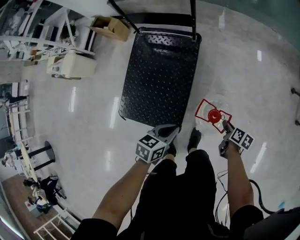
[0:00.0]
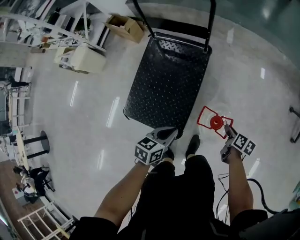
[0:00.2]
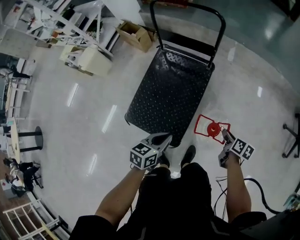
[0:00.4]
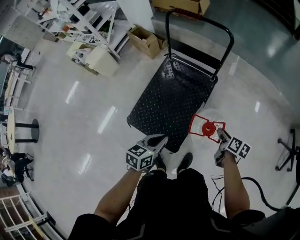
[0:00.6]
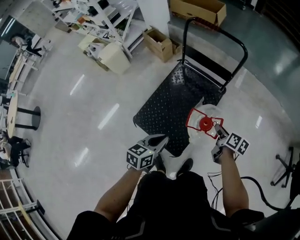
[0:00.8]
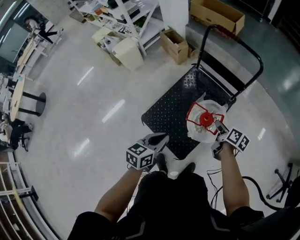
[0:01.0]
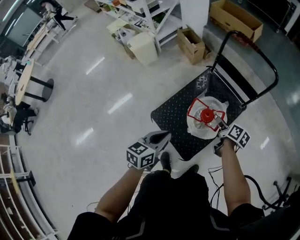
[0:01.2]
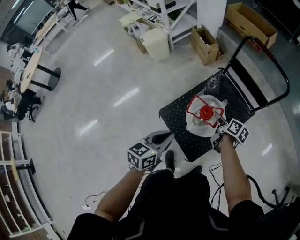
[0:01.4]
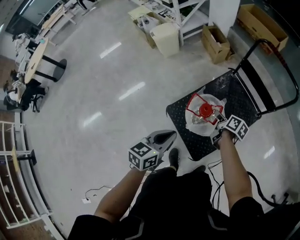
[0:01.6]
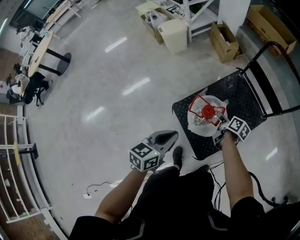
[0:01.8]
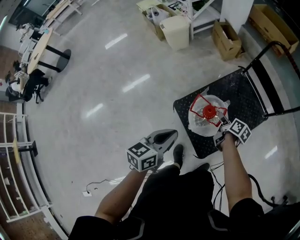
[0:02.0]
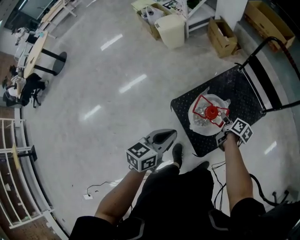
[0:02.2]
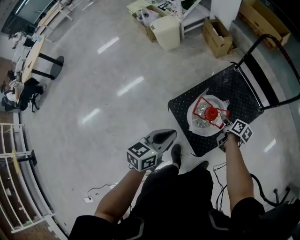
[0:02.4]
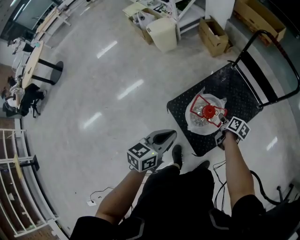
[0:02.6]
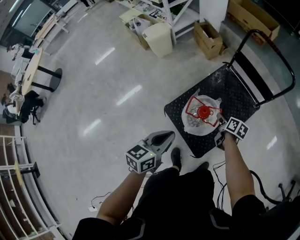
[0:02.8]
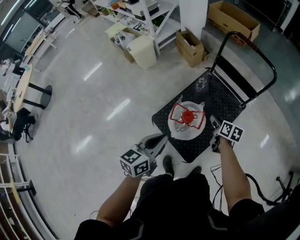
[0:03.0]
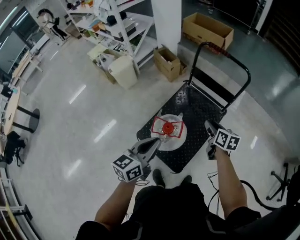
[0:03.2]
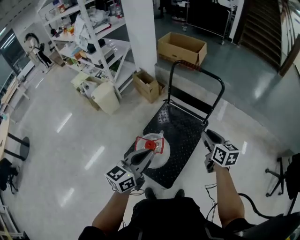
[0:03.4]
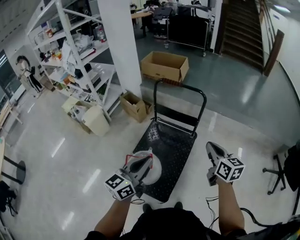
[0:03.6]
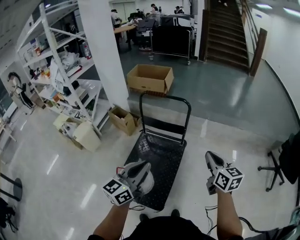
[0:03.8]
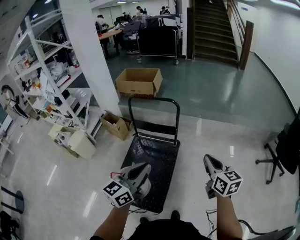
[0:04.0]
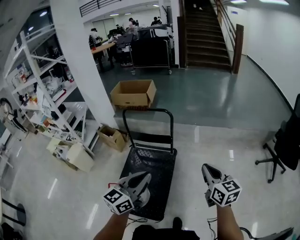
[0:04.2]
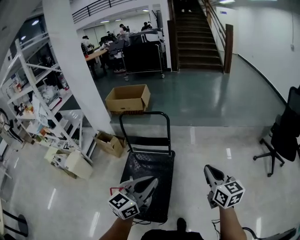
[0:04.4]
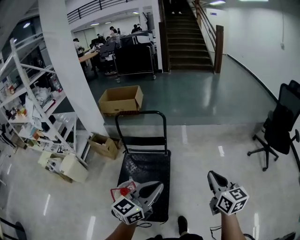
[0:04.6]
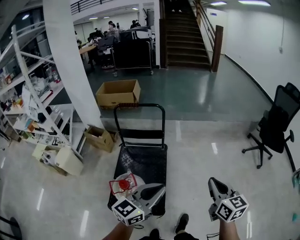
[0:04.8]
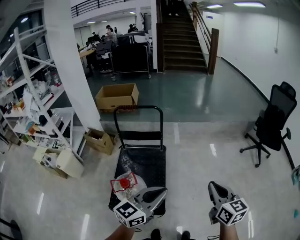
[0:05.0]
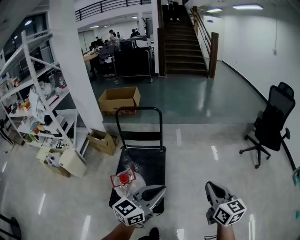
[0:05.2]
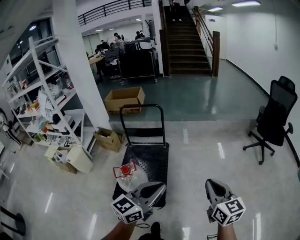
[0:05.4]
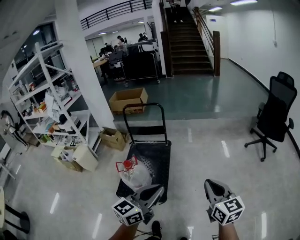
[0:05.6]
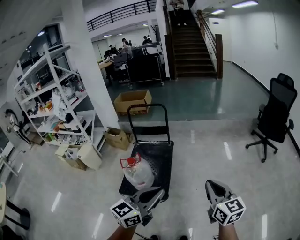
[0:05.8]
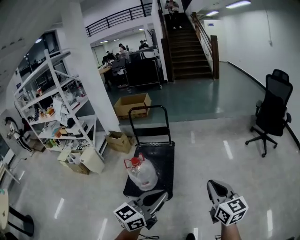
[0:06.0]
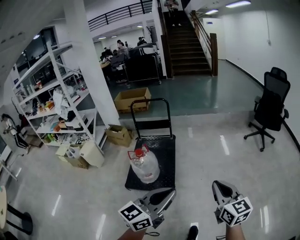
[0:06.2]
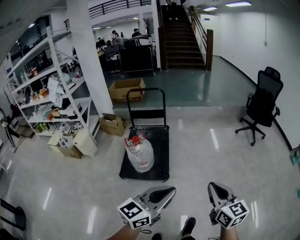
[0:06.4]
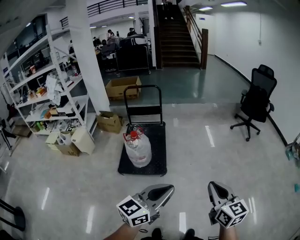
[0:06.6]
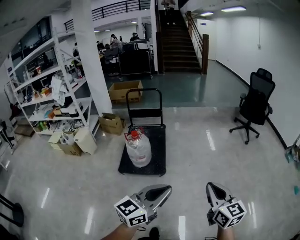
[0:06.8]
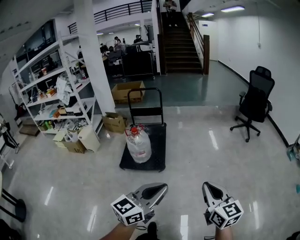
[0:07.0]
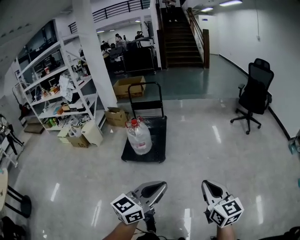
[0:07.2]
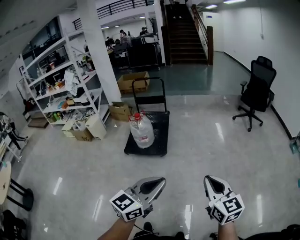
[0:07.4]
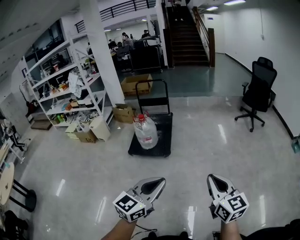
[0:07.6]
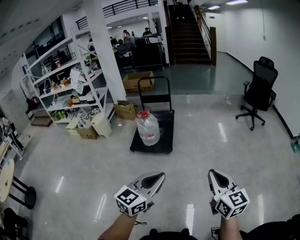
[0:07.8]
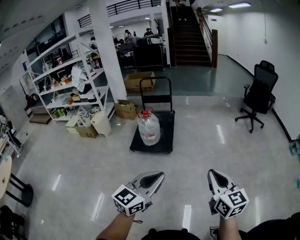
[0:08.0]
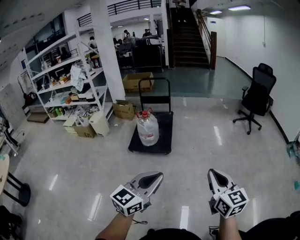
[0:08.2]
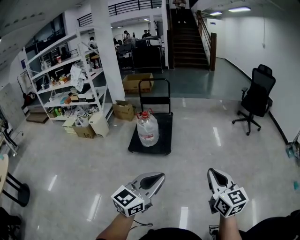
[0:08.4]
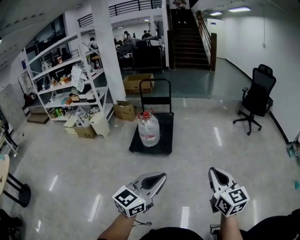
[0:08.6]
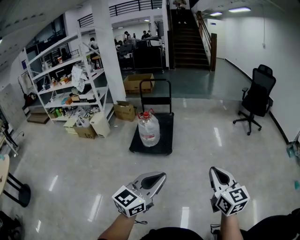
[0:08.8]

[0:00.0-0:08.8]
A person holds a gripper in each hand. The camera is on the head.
0:00.0 to 0:01.4: The right gripper changes place by about 50 cm, and changes its angle by some 40 degrees. Meanwhile the left gripper ends up roughly 40 cm from where it was, and changes its angle by some 50 degrees.
0:01.4 to 0:03.0: The right gripper travels to the left and back again, approximately 10 cm each way. Meanwhile the left gripper goes to the left and returns, about 10 cm each way.
0:03.0 to 0:04.4: The right gripper moves some 50 cm, rotates roughly 50 degrees, and closes its fingers, while the left gripper moves roughly 40 cm, and turns by approximately 50 degrees.
0:04.4 to 0:05.8: The two grippers travel together, backward and to the right, roughly 50 cm.
0:05.8 to 0:07.4: The pair of grippers is taken backward, roughly 50 cm.
0:07.4 to 0:08.8: Both grippers travel together to the left and backward, some 10 cm.

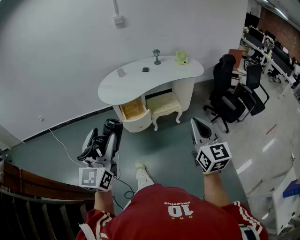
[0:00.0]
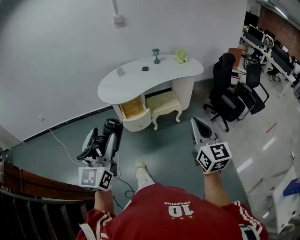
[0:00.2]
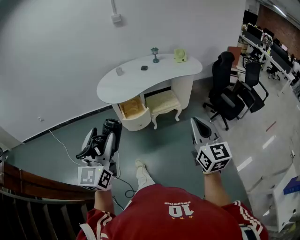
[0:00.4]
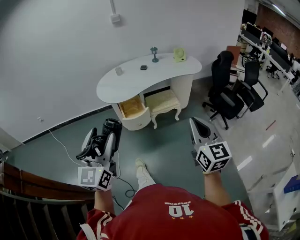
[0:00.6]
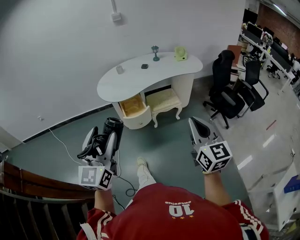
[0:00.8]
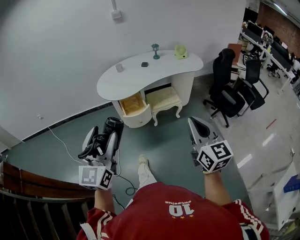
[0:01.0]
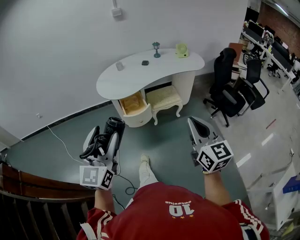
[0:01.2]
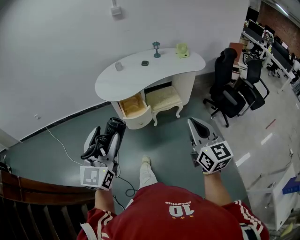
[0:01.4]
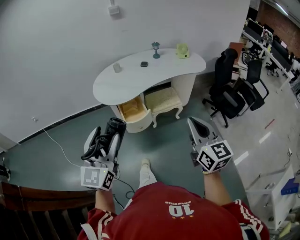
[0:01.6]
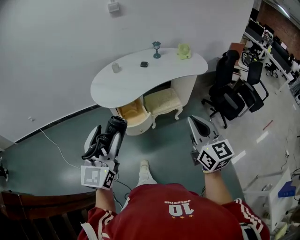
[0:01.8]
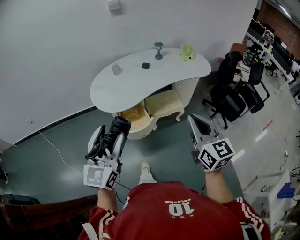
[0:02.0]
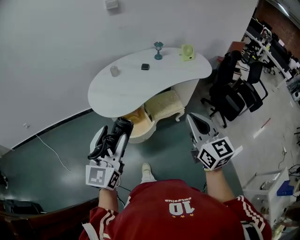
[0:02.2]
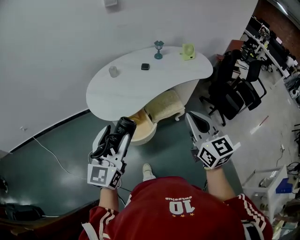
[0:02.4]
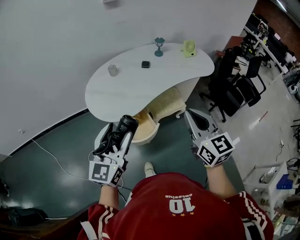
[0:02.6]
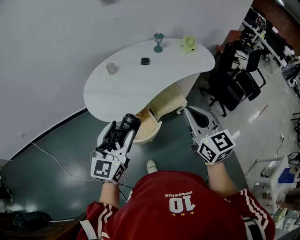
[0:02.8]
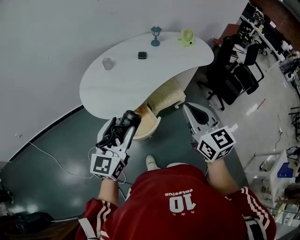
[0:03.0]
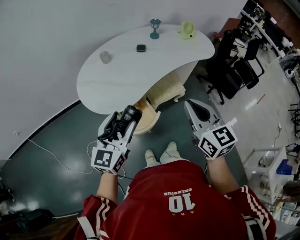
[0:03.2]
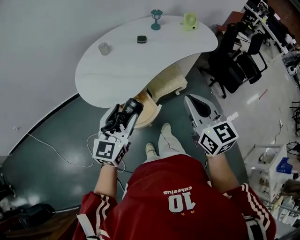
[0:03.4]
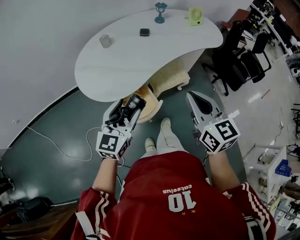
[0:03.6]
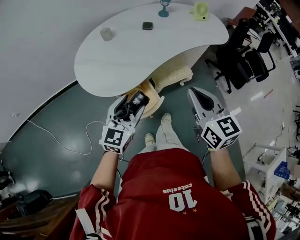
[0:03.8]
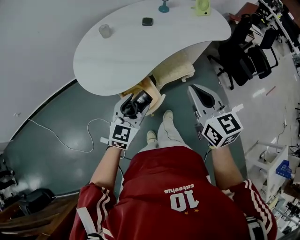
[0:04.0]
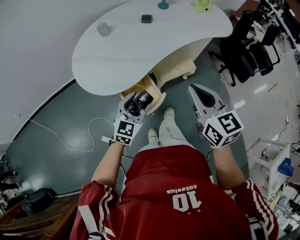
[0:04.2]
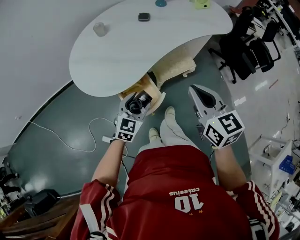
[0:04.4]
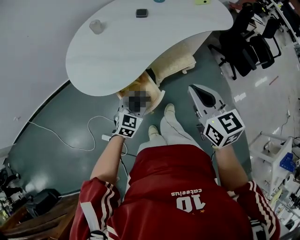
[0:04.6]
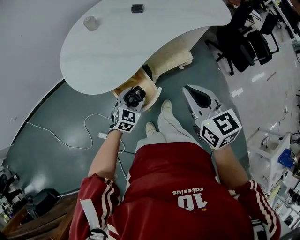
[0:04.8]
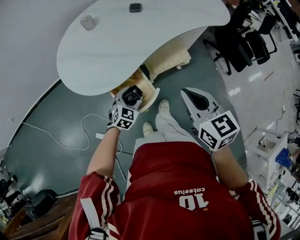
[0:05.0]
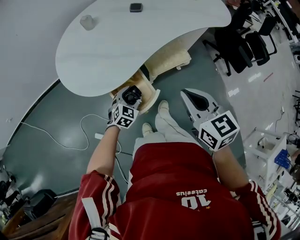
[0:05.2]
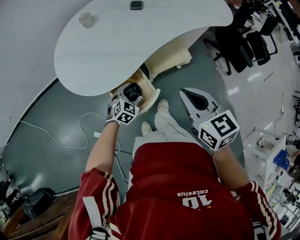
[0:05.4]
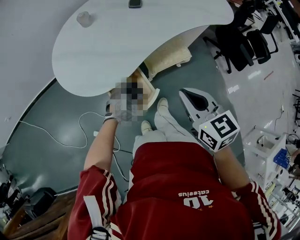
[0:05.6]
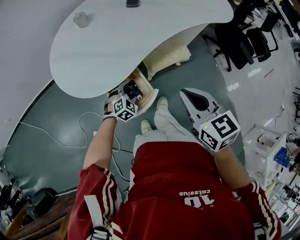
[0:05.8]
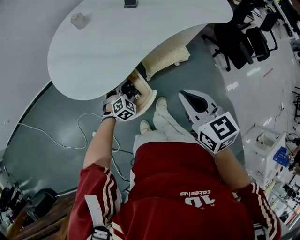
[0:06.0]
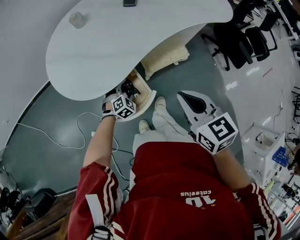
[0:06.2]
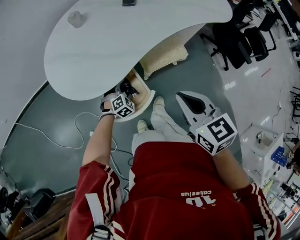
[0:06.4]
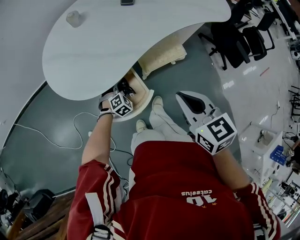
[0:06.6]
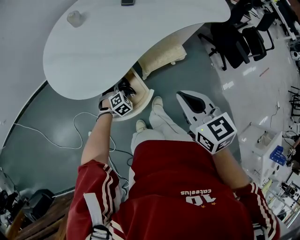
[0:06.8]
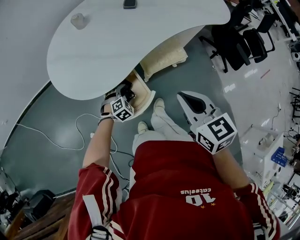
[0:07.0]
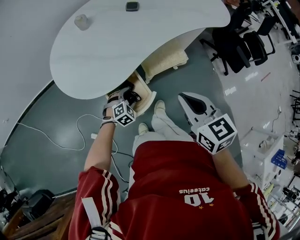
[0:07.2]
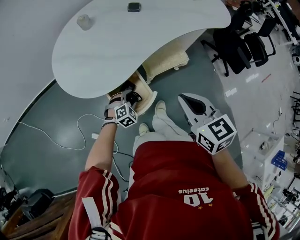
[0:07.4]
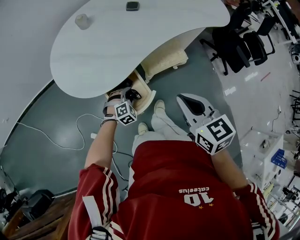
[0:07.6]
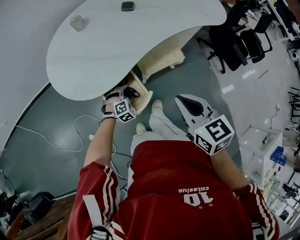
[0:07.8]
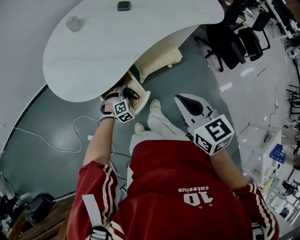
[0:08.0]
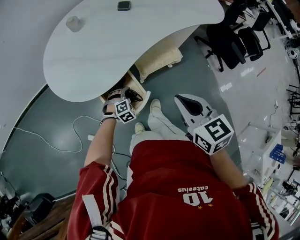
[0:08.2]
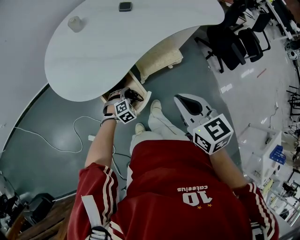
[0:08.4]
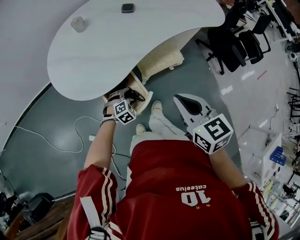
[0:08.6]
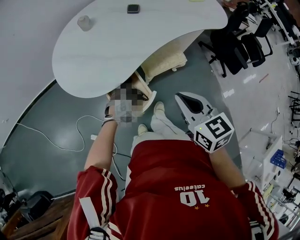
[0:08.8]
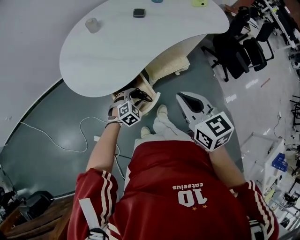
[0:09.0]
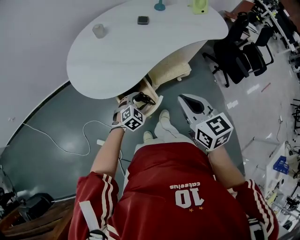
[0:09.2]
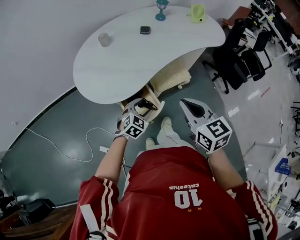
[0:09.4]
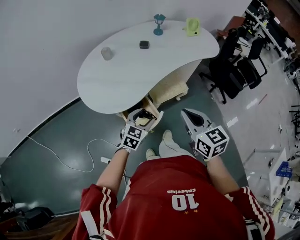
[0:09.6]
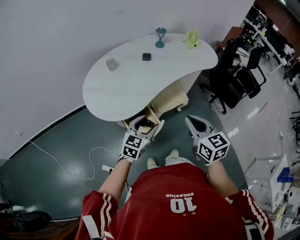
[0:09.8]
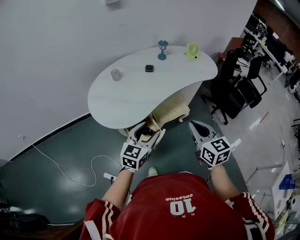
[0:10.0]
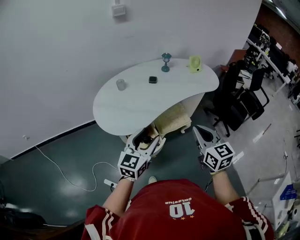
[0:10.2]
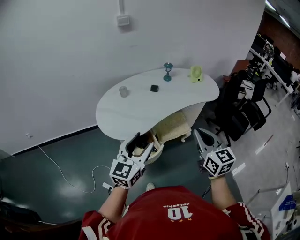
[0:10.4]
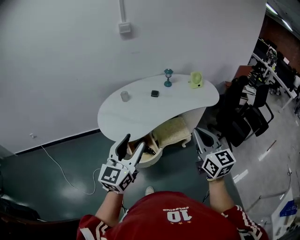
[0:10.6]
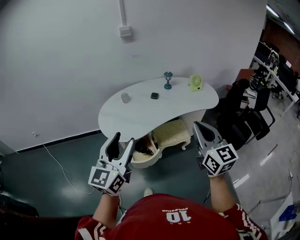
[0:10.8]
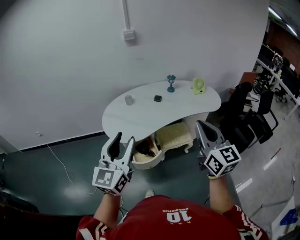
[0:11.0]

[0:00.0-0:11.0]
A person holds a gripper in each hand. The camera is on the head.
0:00.0 to 0:01.6: Both grippers travel together forward, about 10 cm.
0:01.6 to 0:03.2: The right gripper goes some 30 cm forward and to the left, while the left gripper moves forward and downward, about 35 cm, and swivels some 20 degrees.
0:03.2 to 0:04.8: The right gripper is displaced downward by approximately 15 cm; the left gripper shifts some 35 cm downward, and tilts its fingers approximately 30 degrees downward.
0:04.8 to 0:06.2: The left gripper travels downward and forward by approximately 15 cm, and changes its angle by approximately 30 degrees, while the right gripper heads downward, covering some 5 cm.
0:06.2 to 0:07.8: The grippers make only small movements.
0:07.8 to 0:09.4: The right gripper moves upward, some 5 cm. The left gripper moves upward, some 15 cm, and changes its angle by some 30 degrees.
0:09.4 to 0:11.0: The right gripper goes roughly 30 cm upward and to the right, and changes its angle by some 30 degrees; the left gripper goes some 50 cm upward, and angles its fingers upward, by roughly 50 degrees.

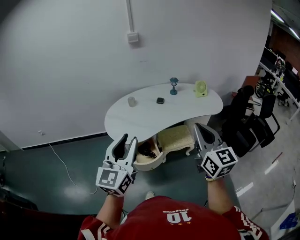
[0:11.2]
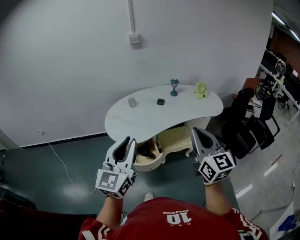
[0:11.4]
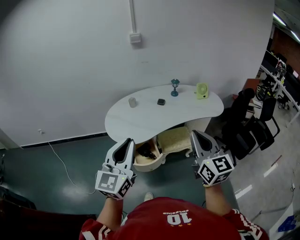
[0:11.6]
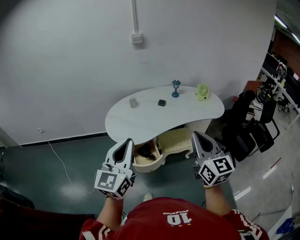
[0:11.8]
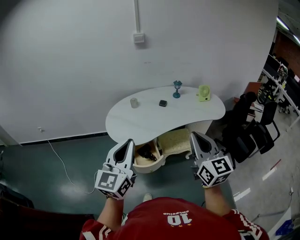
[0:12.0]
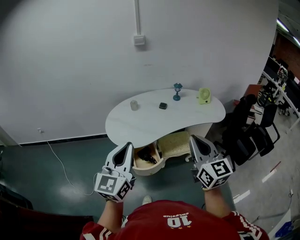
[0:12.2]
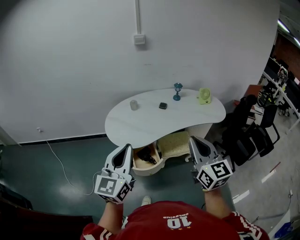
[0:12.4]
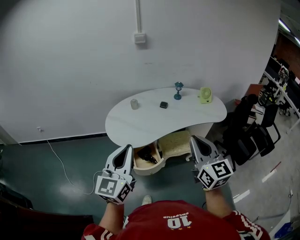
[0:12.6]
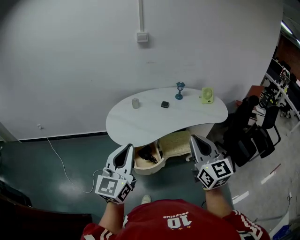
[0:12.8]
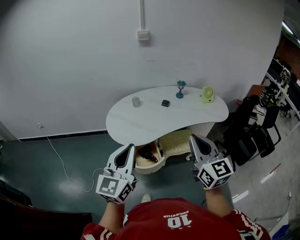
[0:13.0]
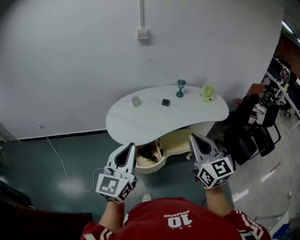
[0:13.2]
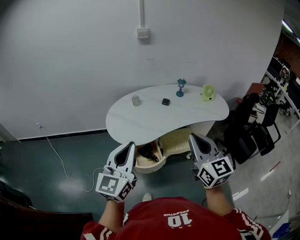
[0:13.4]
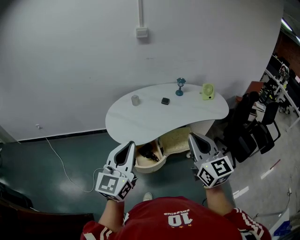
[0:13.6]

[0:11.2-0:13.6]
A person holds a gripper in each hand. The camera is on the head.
0:11.2 to 0:12.4: The left gripper closes its fingers.
0:12.4 to 0:13.6: The grippers move only a little.

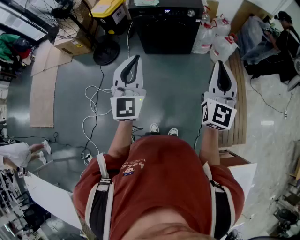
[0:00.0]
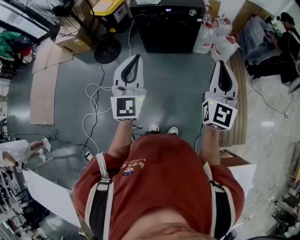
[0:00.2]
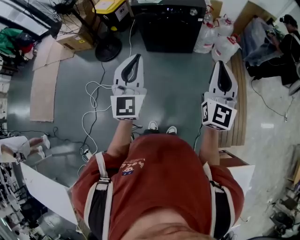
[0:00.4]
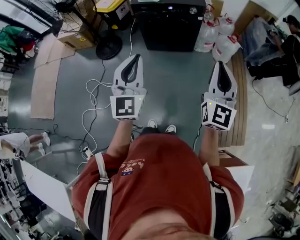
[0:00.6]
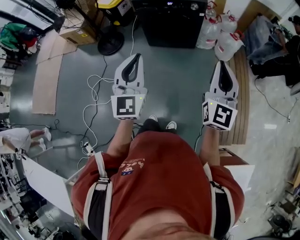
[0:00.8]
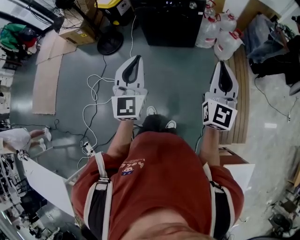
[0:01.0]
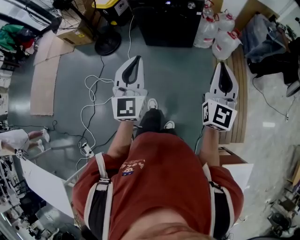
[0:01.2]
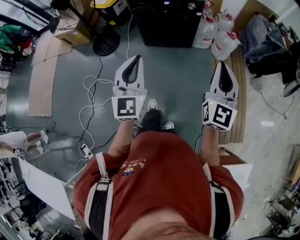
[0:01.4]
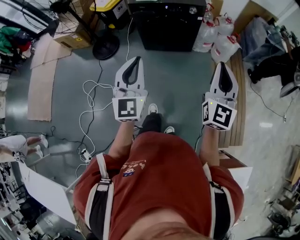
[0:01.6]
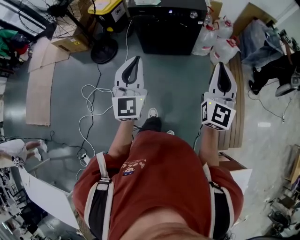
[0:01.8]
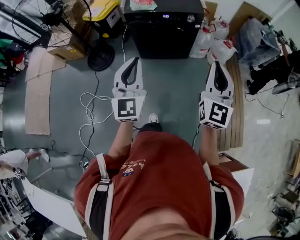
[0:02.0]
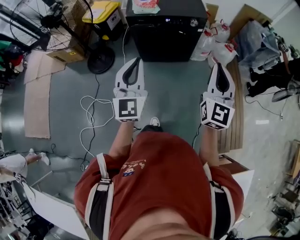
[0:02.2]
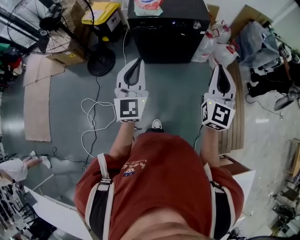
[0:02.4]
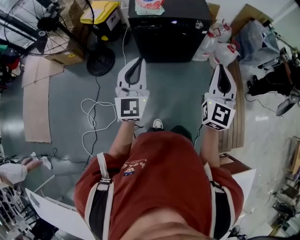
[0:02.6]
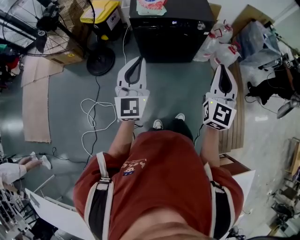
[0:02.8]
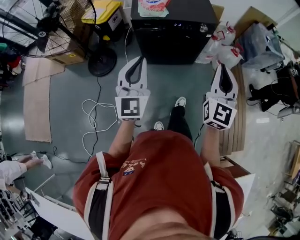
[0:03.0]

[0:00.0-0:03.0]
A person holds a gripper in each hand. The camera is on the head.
0:00.0 to 0:01.6: The right gripper shifts by some 5 cm.
0:01.6 to 0:03.0: The grippers both shift forward and to the left by some 25 cm.
